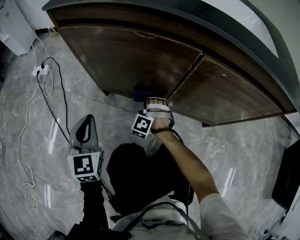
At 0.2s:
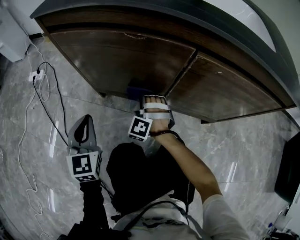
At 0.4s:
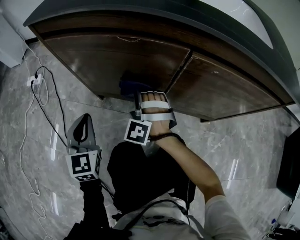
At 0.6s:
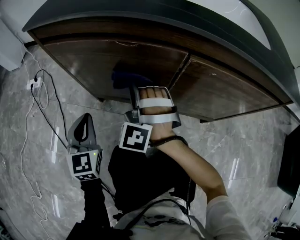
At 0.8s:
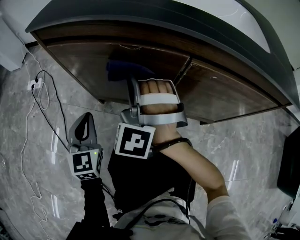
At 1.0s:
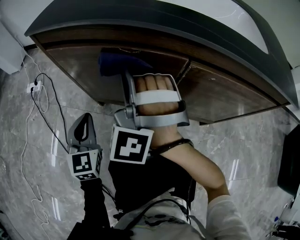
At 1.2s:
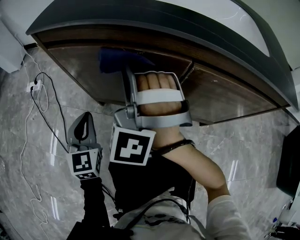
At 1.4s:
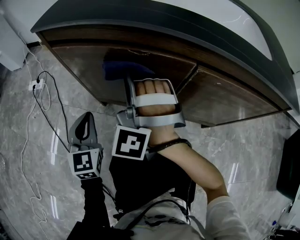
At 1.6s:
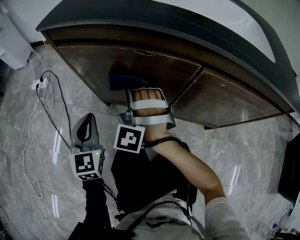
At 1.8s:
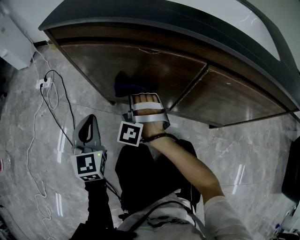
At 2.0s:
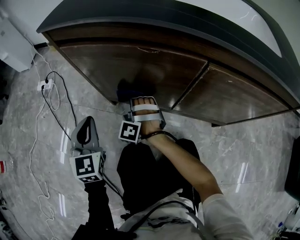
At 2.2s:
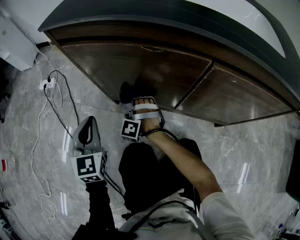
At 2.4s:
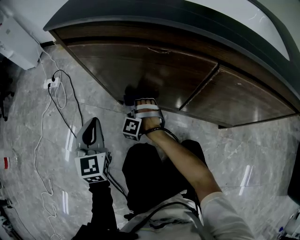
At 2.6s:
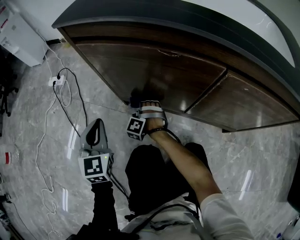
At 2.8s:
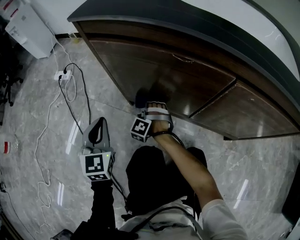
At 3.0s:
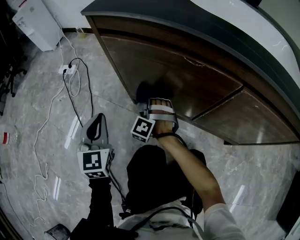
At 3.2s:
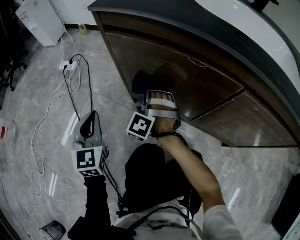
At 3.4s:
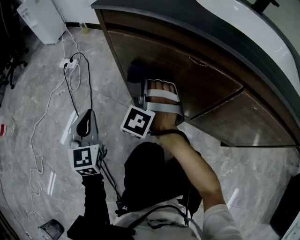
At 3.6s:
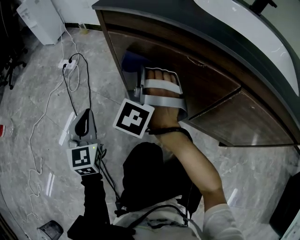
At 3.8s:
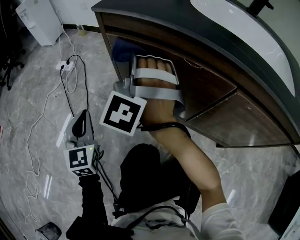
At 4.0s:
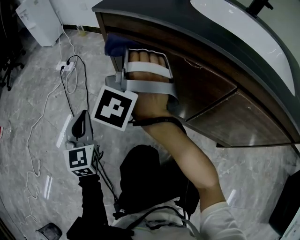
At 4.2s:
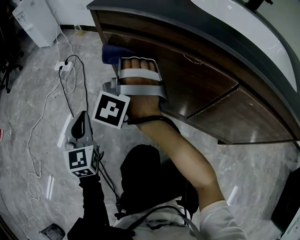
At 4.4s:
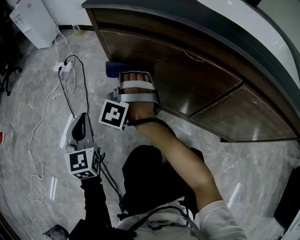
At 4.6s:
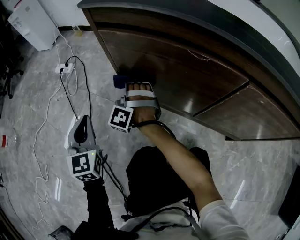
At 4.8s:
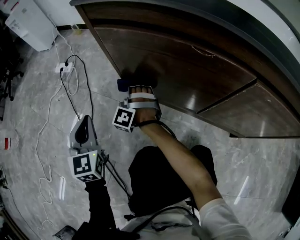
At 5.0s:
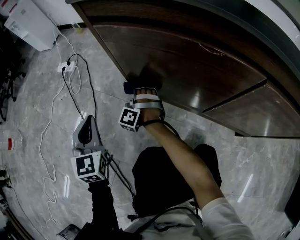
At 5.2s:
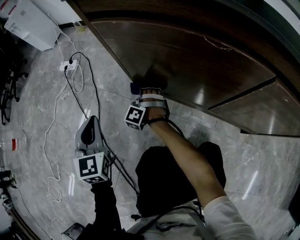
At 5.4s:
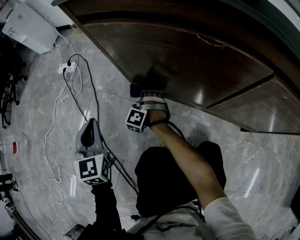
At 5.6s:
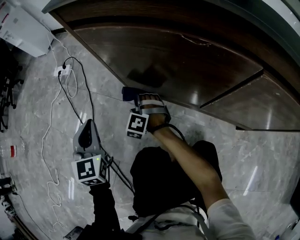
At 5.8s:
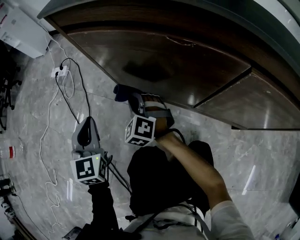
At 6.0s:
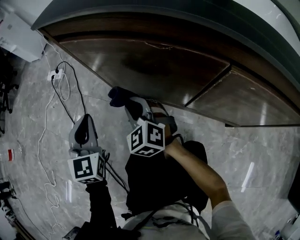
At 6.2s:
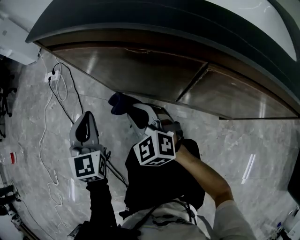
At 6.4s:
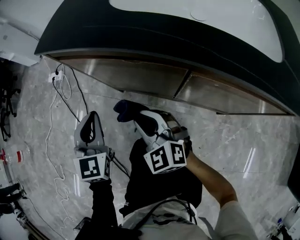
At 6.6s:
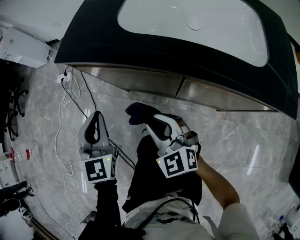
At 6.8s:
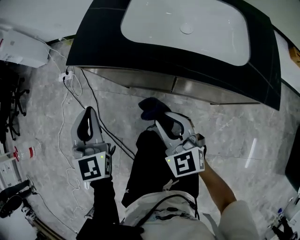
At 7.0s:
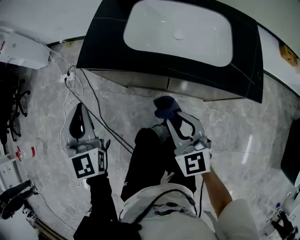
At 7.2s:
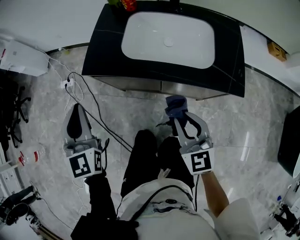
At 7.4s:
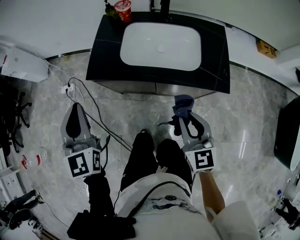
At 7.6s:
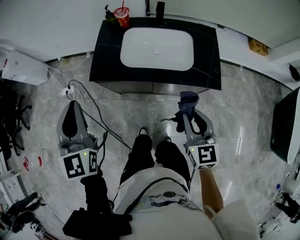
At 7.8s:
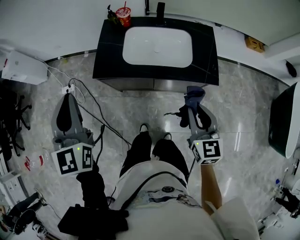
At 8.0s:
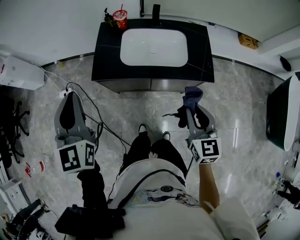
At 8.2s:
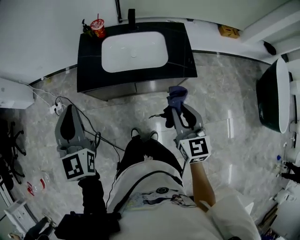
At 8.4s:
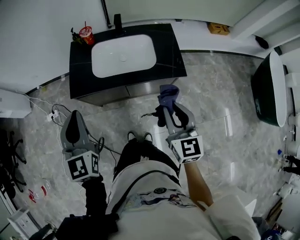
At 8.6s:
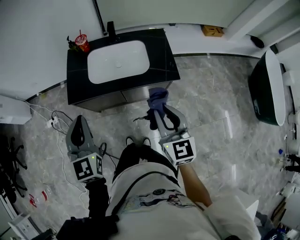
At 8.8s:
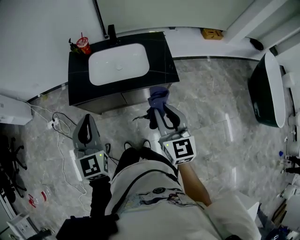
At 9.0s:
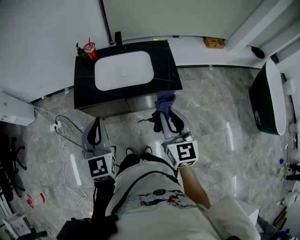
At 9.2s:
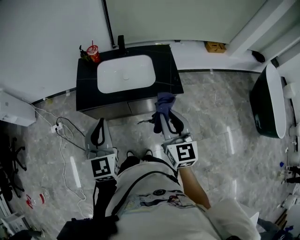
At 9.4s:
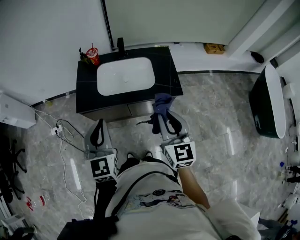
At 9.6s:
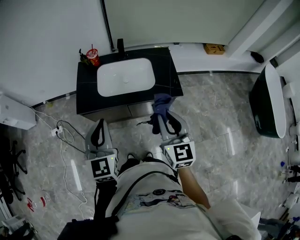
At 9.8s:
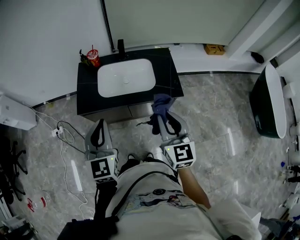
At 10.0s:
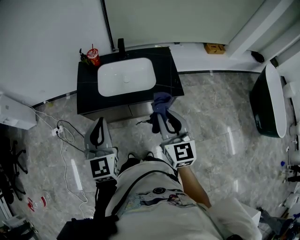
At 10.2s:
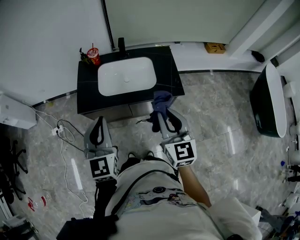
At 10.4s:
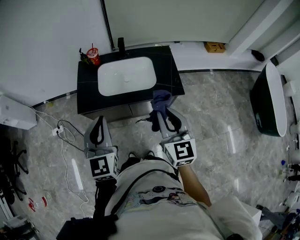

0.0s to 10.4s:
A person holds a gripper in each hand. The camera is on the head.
0.0s to 1.4s: The left gripper goes some 5 cm forward. The right gripper is displaced upward by approximately 30 cm, and rotates approximately 30 degrees.
1.4s to 3.0s: The left gripper is displaced to the left by roughly 10 cm. The right gripper moves downward, about 25 cm, and swivels approximately 20 degrees.
3.0s to 4.4s: The right gripper travels upward and to the left by roughly 15 cm, while the left gripper goes about 5 cm to the left.
4.4s to 6.0s: The left gripper is displaced to the right by about 10 cm, while the right gripper travels backward and to the right by about 10 cm, moves some 25 cm downward and comes back, and rotates some 50 degrees.
6.0s to 7.4s: The right gripper heads upward, to the right and backward, covering approximately 60 cm, and turns by about 50 degrees, while the left gripper shifts approximately 50 cm upward.
7.4s to 9.0s: The left gripper travels to the right, upward and backward by approximately 15 cm. The right gripper shifts approximately 20 cm upward, and swivels some 20 degrees.
9.0s to 10.4s: The grippers stay close to where they were, moving slightly.

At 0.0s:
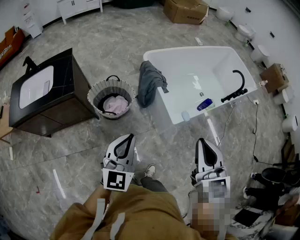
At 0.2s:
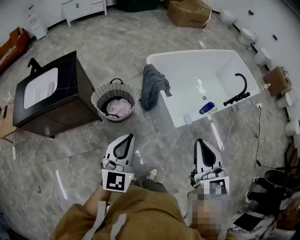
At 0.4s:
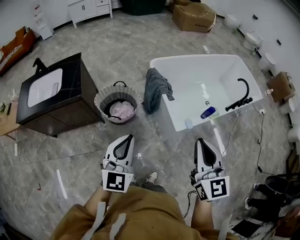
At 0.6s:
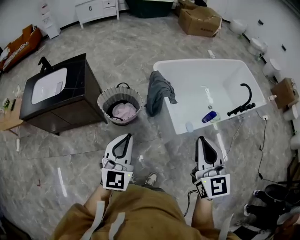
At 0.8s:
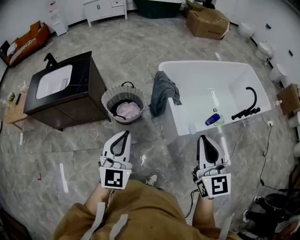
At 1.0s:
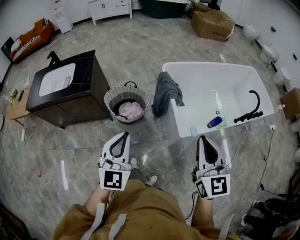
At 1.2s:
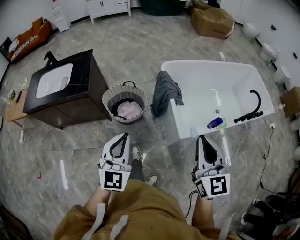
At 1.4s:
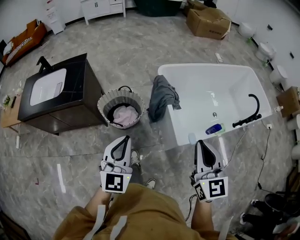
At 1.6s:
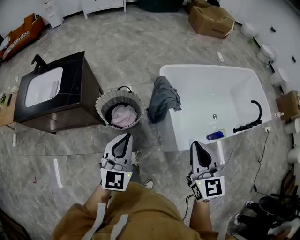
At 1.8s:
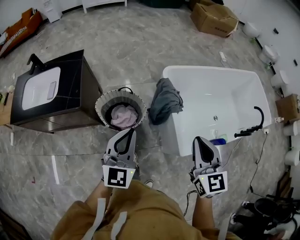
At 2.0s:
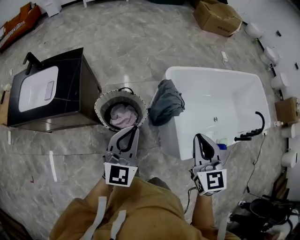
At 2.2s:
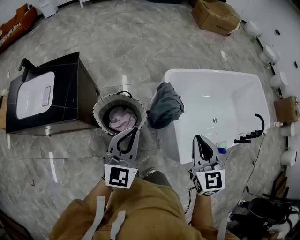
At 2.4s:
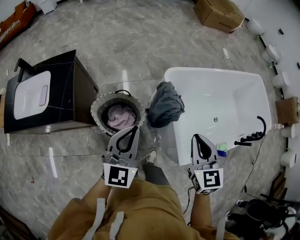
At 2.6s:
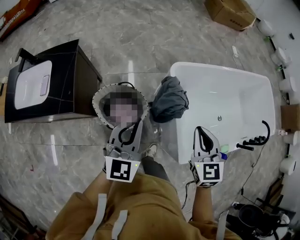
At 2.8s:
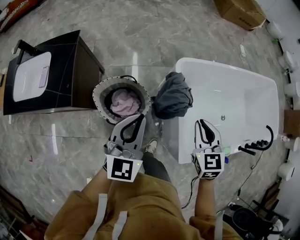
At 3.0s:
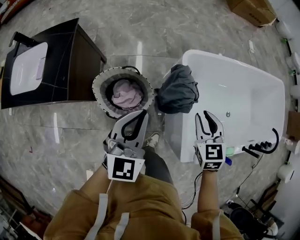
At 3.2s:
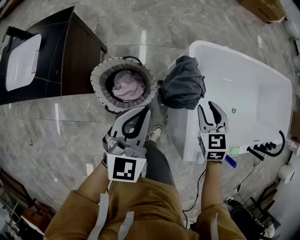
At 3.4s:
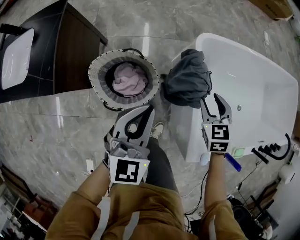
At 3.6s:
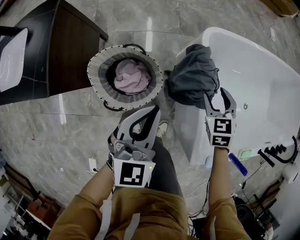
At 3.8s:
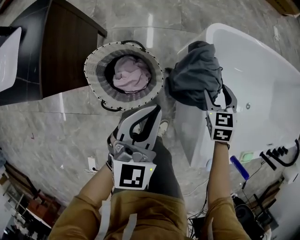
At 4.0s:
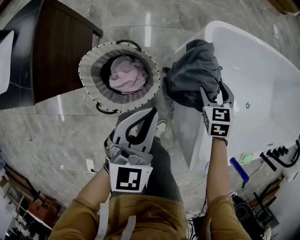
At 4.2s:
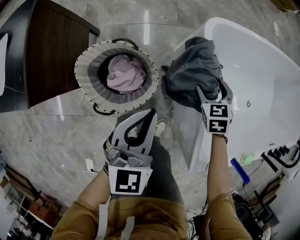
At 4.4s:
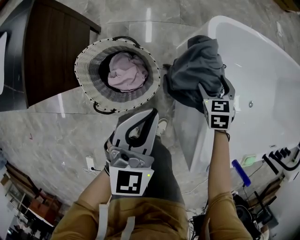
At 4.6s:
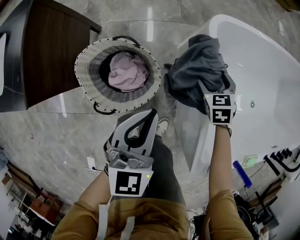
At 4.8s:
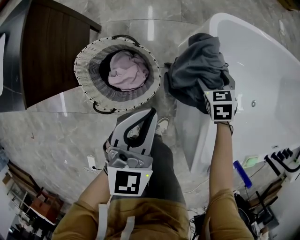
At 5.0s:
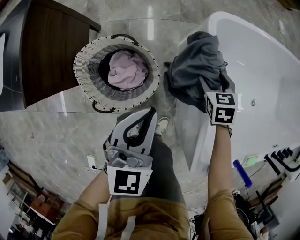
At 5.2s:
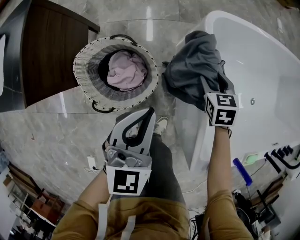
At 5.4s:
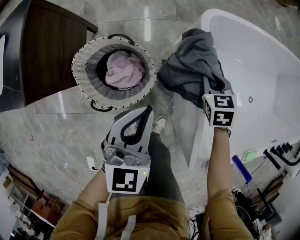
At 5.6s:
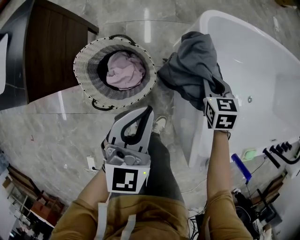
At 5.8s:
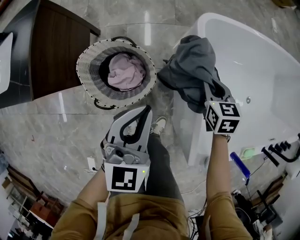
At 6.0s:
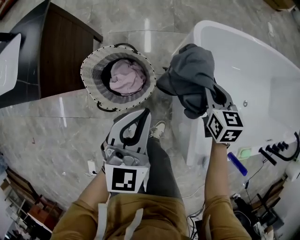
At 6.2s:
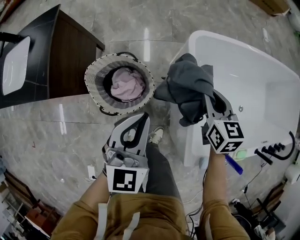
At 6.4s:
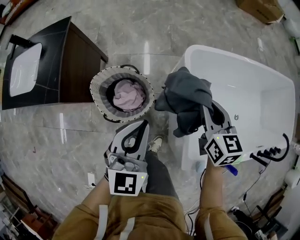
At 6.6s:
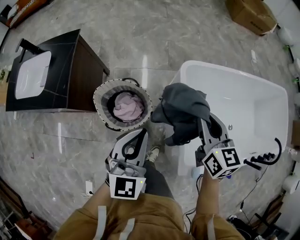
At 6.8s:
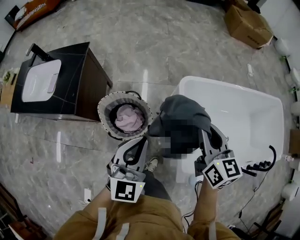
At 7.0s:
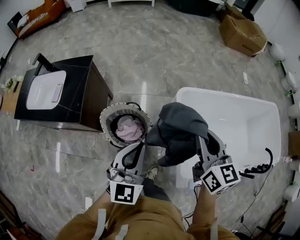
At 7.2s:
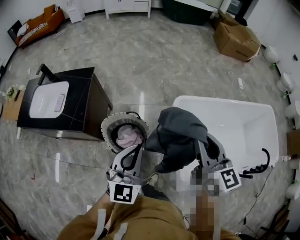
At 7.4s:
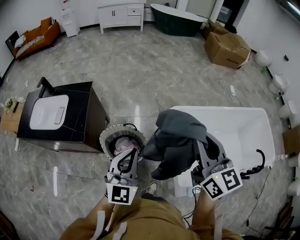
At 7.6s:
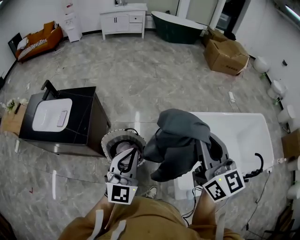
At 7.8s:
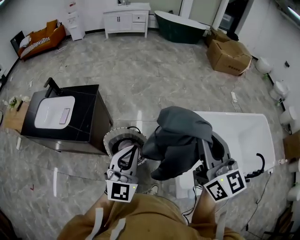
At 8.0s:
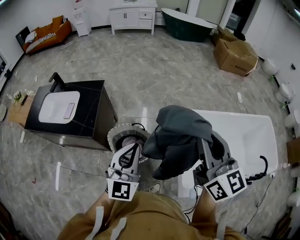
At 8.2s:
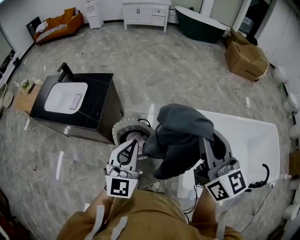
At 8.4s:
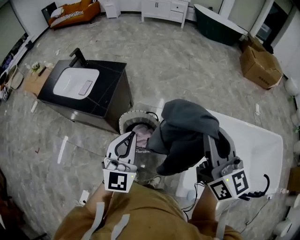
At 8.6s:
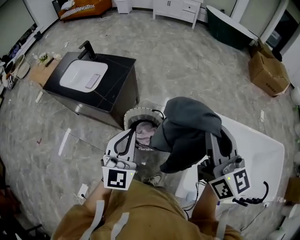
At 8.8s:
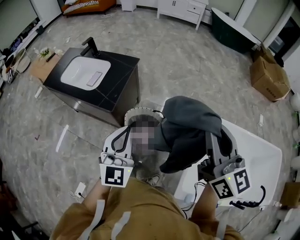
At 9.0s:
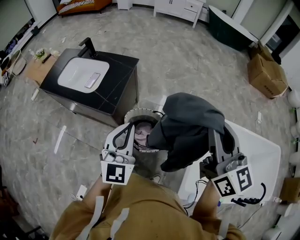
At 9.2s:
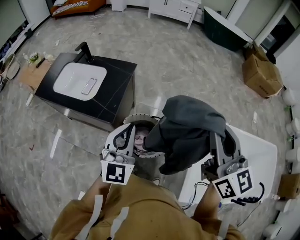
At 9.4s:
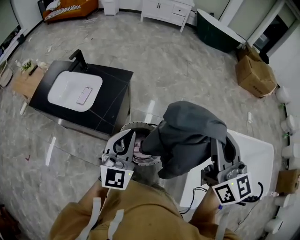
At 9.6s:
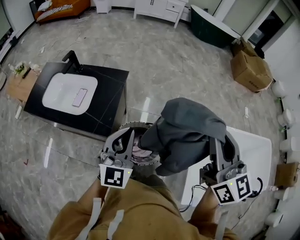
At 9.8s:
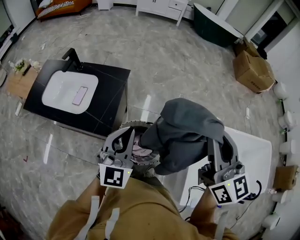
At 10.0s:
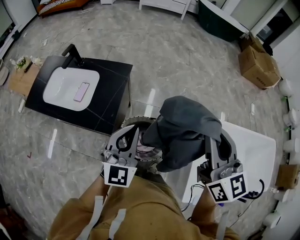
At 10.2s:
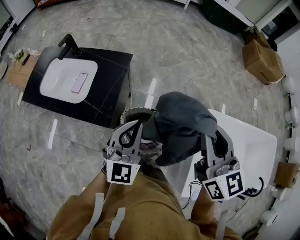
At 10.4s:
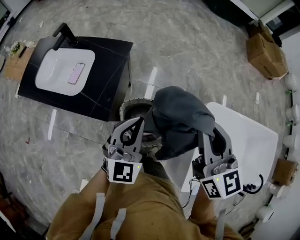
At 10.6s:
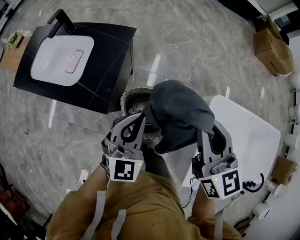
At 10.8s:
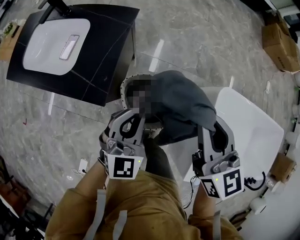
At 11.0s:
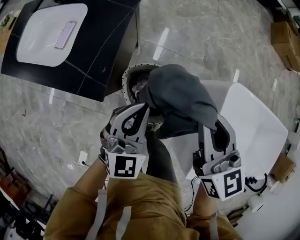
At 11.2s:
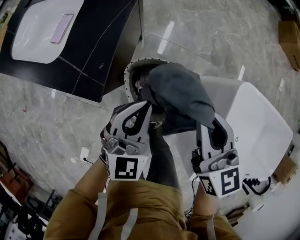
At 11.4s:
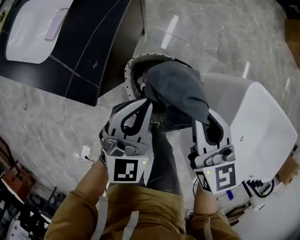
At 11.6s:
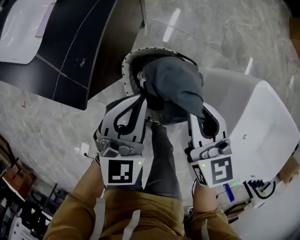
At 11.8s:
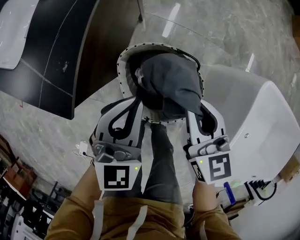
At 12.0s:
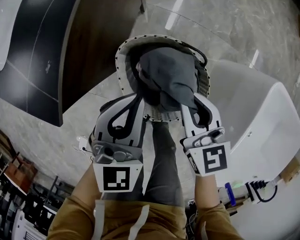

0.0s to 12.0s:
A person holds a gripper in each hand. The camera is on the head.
0.0s to 1.6s: Both grippers travel together forward, roughly 15 cm.
1.6s to 3.0s: The right gripper heads forward and downward, covering approximately 40 cm, and rotates roughly 30 degrees. Meanwhile the left gripper shifts some 25 cm forward.
3.0s to 4.4s: The left gripper travels downward by approximately 20 cm, while the right gripper is displaced downward by some 30 cm, and opens.
4.4s to 6.0s: The left gripper moves upward, approximately 5 cm. Meanwhile the right gripper shifts some 15 cm upward, swivels approximately 30 degrees, and closes up.
6.0s to 7.6s: The left gripper shifts approximately 30 cm upward, and swivels about 20 degrees. The right gripper moves upward, about 50 cm, and tips its fingers upward by roughly 40 degrees.
7.6s to 9.0s: The left gripper is displaced to the left by approximately 15 cm, and rotates some 20 degrees. Meanwhile the right gripper goes approximately 15 cm to the left and forward.
9.0s to 10.4s: The right gripper is displaced forward, downward and to the left by roughly 20 cm. Meanwhile the left gripper goes some 15 cm forward and downward.
10.4s to 12.0s: The grippers both shift downward by about 40 cm. The right gripper changes its angle by about 30 degrees.

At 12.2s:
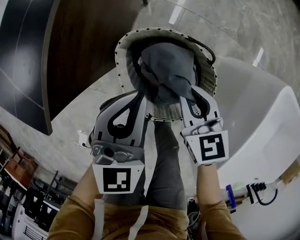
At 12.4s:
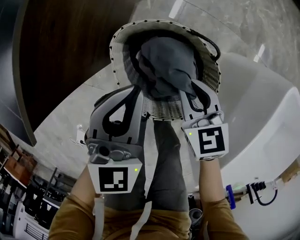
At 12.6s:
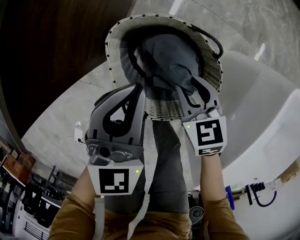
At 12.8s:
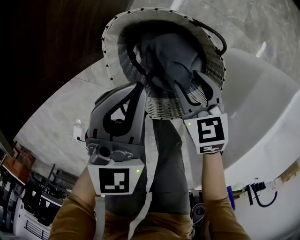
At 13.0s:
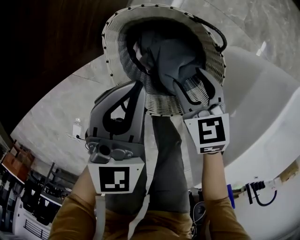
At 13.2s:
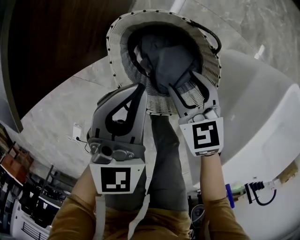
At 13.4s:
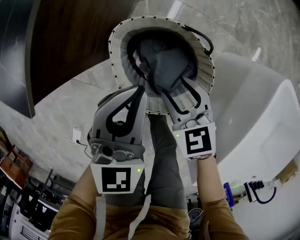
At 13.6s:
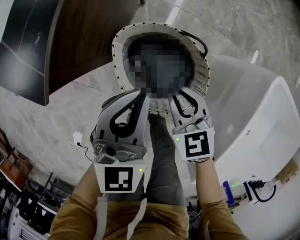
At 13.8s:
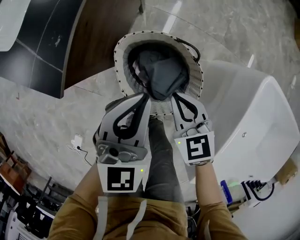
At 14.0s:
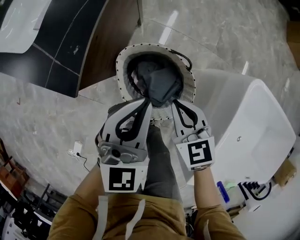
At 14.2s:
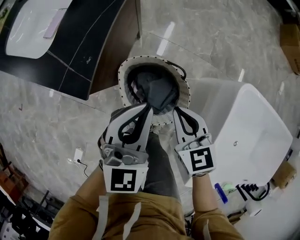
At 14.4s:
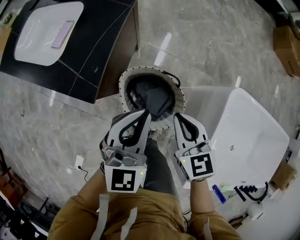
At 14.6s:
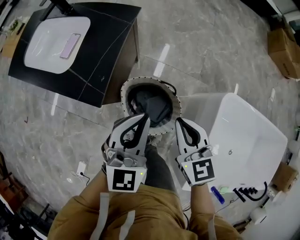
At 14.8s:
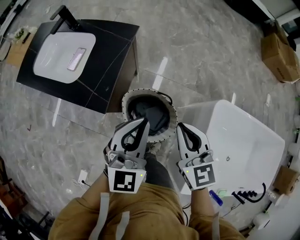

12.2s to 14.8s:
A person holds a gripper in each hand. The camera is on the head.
12.2s to 13.4s: The right gripper moves about 10 cm downward and comes back, and opens.
13.4s to 14.8s: The grippers both shift upward by about 35 cm. The right gripper rotates some 30 degrees, and closes its fingers.
